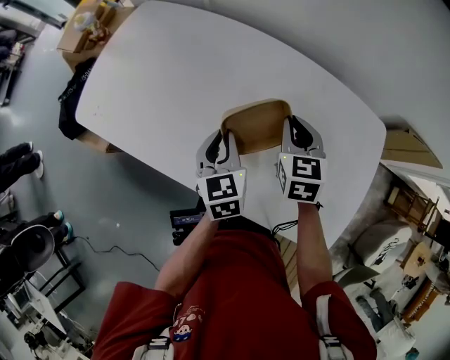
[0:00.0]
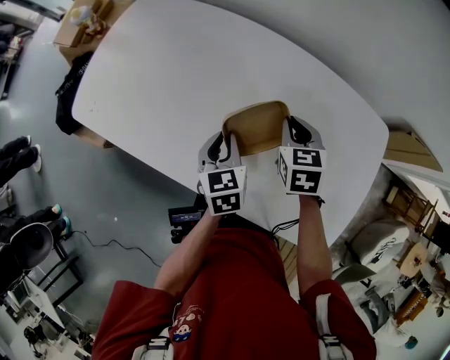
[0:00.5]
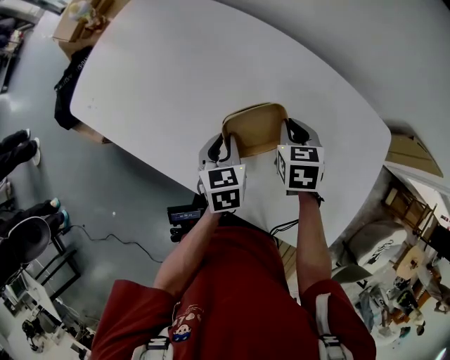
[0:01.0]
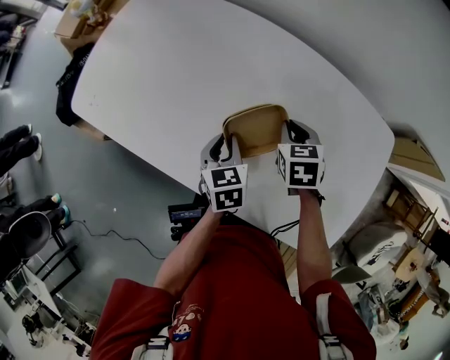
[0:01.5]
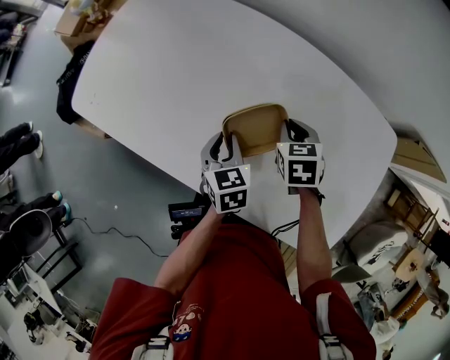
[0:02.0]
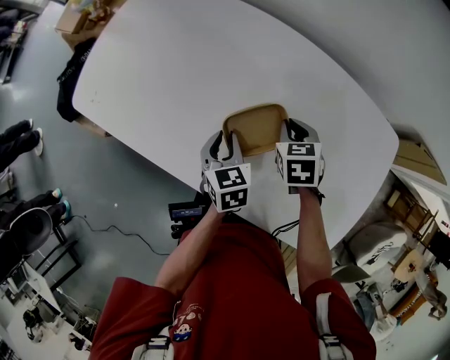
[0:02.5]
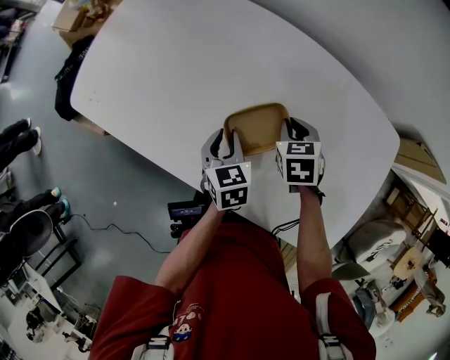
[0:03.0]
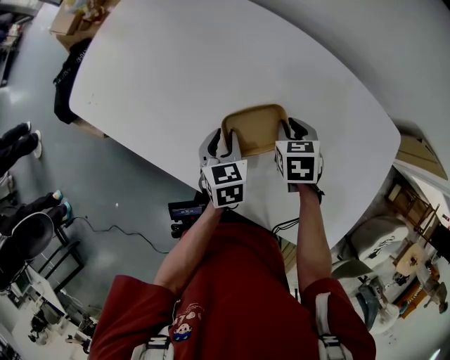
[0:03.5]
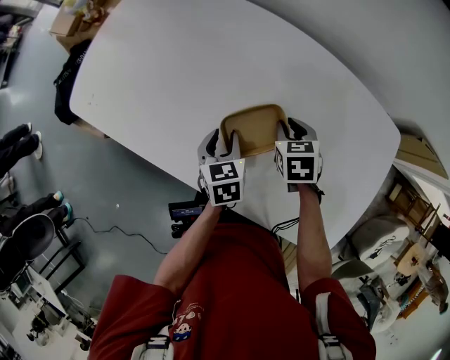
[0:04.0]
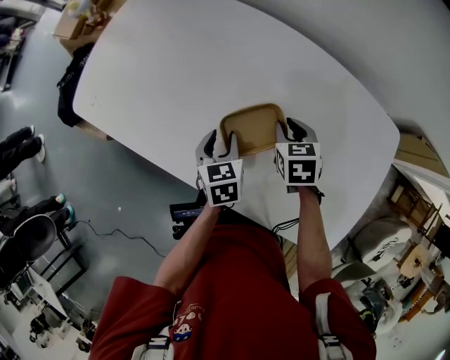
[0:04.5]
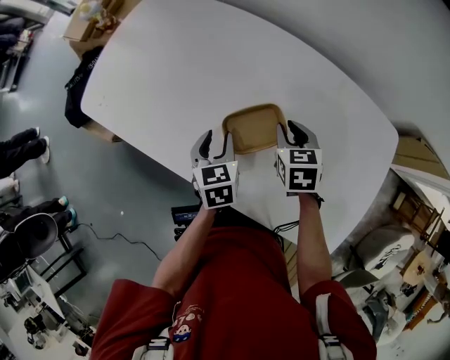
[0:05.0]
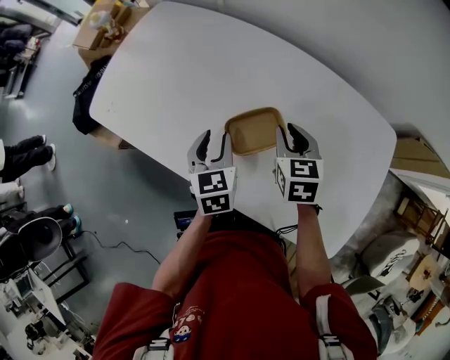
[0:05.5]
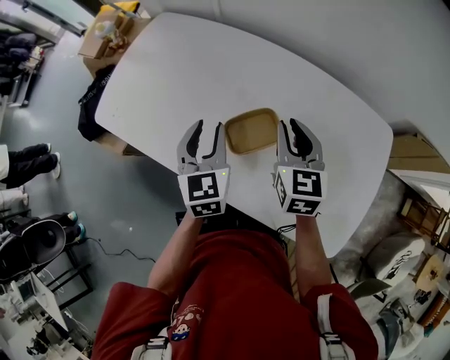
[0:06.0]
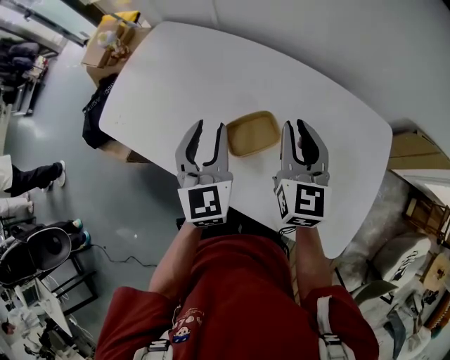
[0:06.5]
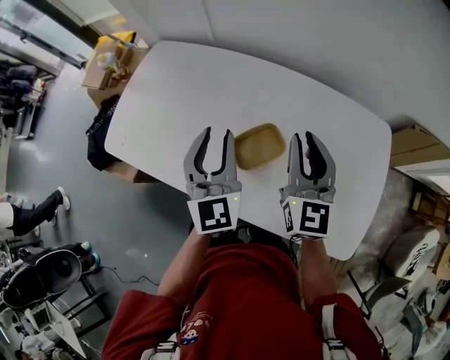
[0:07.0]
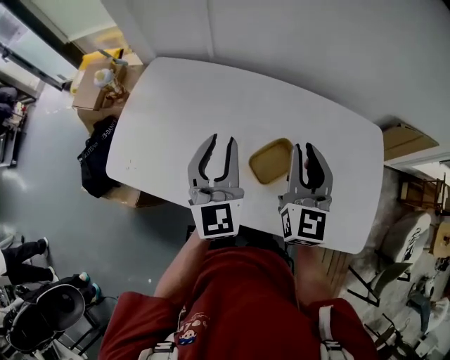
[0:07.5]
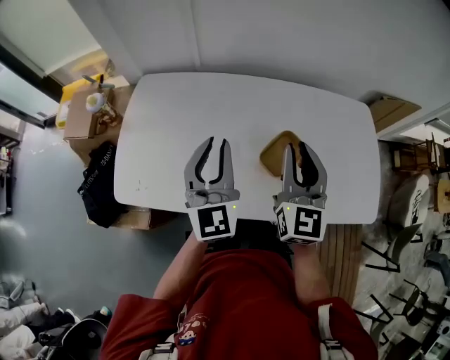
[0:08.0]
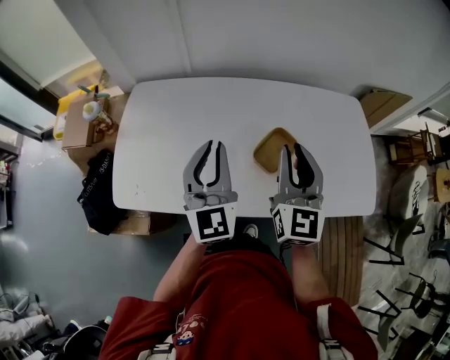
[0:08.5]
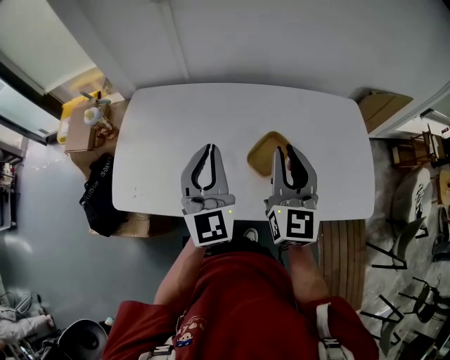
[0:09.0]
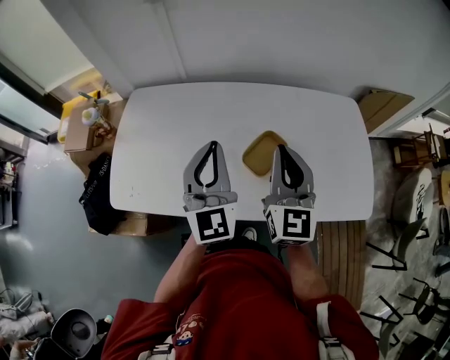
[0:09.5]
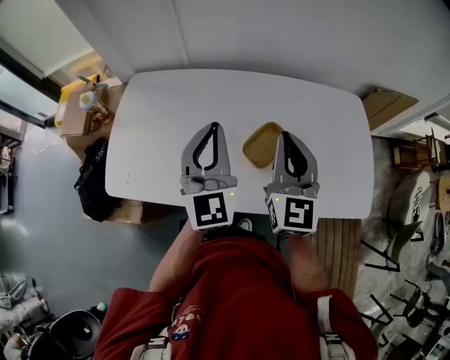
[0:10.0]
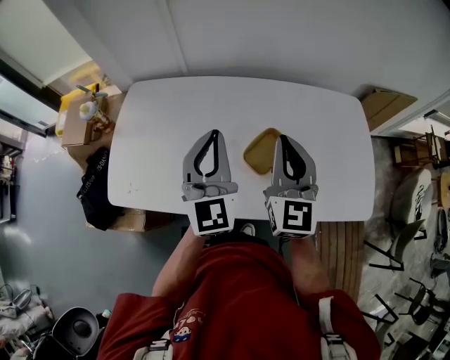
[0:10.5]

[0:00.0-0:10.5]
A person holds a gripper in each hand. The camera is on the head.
0.0 to 2.0 s: Both grippers travel together downward, about 10 cm. The right gripper turns by approximately 20 degrees.
2.0 to 4.0 s: The left gripper opens.
4.0 to 6.5 s: The two grippers go about 25 cm upward. The right gripper tips its fingers upward by some 50 degrees. Meanwhile the left gripper angles its fingers upward, by approximately 40 degrees.
6.5 to 8.5 s: The right gripper moves roughly 20 cm, and rotates roughly 30 degrees. The left gripper ends up some 15 cm from where it was, swivels some 30 degrees, and closes.
8.5 to 10.5 s: The left gripper moves to the right, approximately 5 cm.

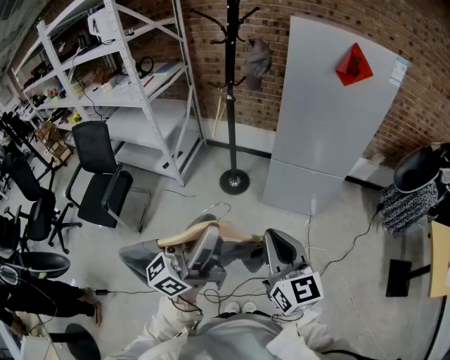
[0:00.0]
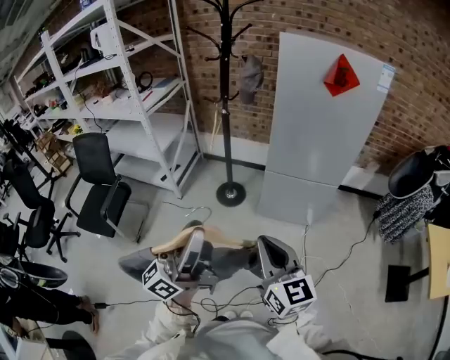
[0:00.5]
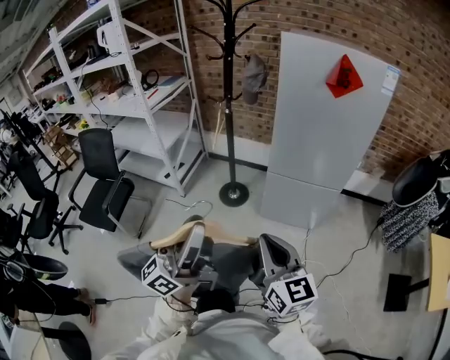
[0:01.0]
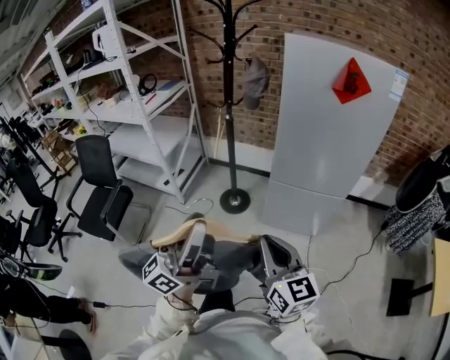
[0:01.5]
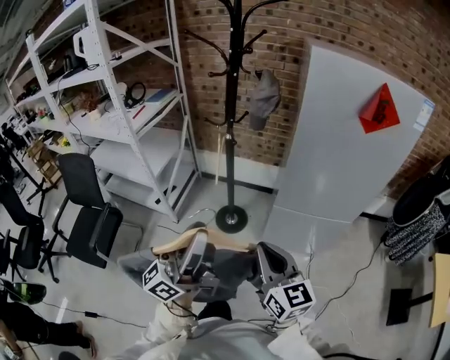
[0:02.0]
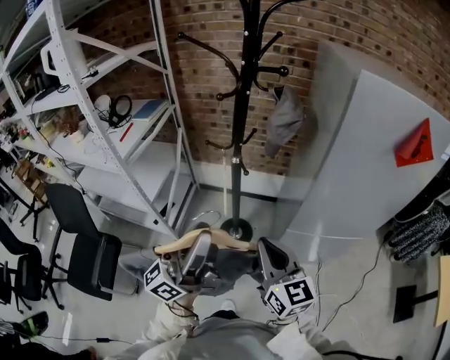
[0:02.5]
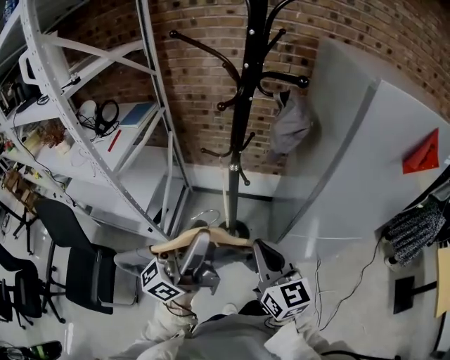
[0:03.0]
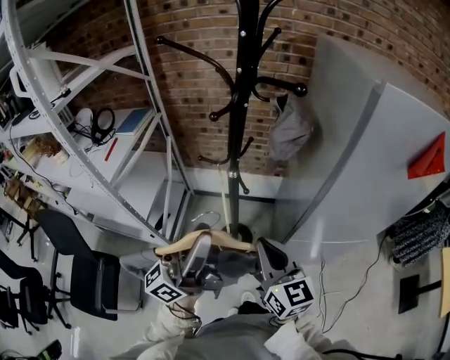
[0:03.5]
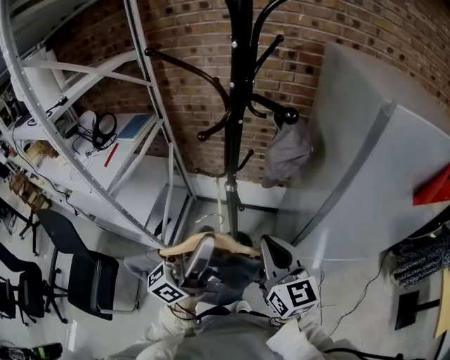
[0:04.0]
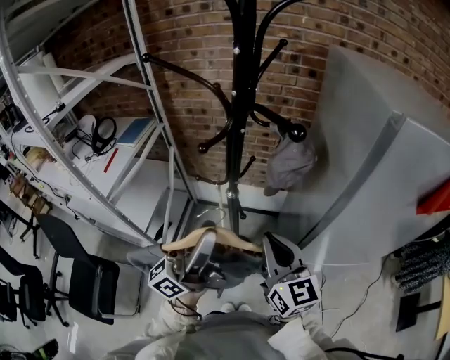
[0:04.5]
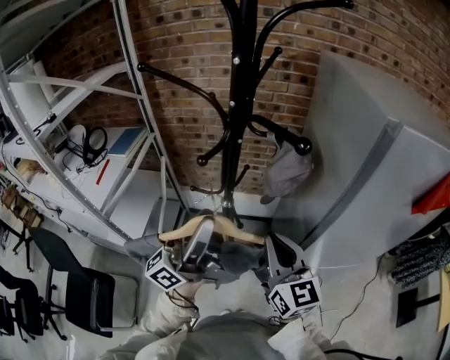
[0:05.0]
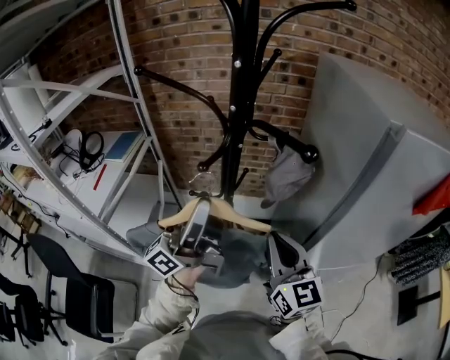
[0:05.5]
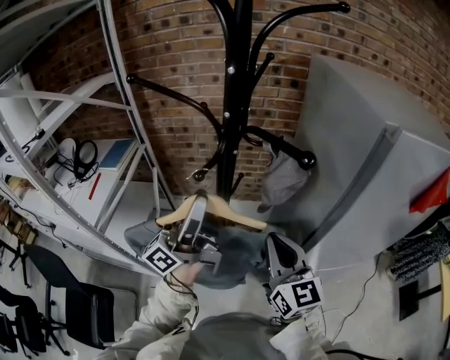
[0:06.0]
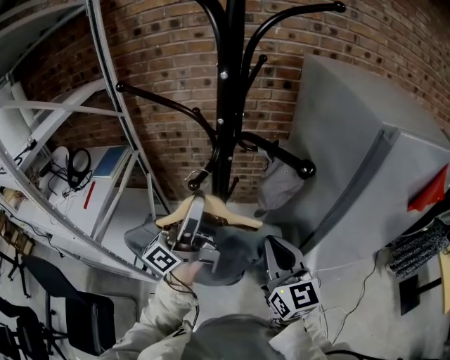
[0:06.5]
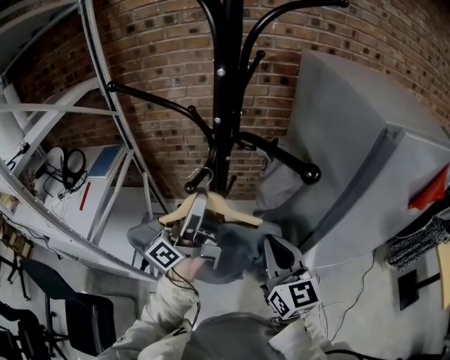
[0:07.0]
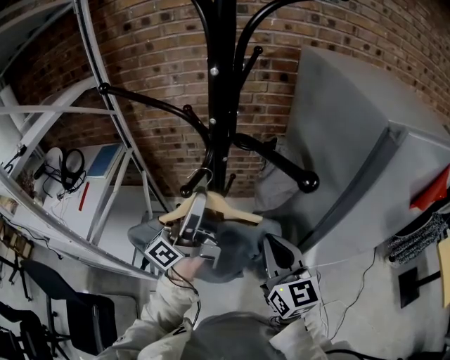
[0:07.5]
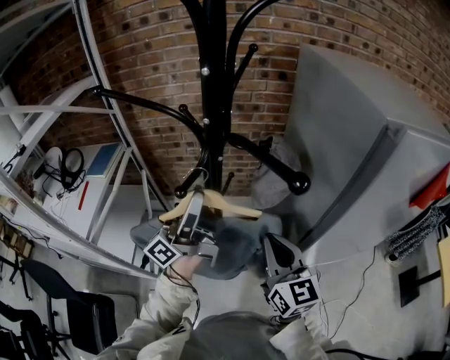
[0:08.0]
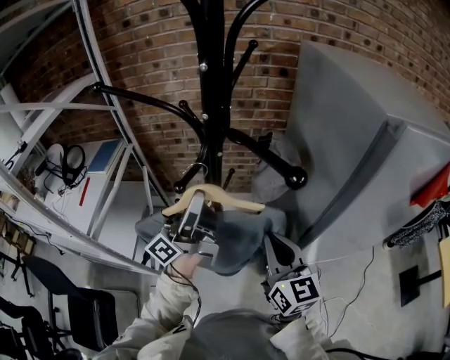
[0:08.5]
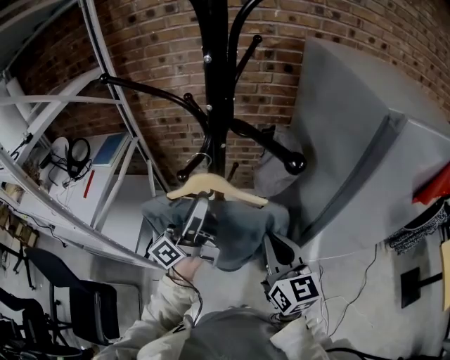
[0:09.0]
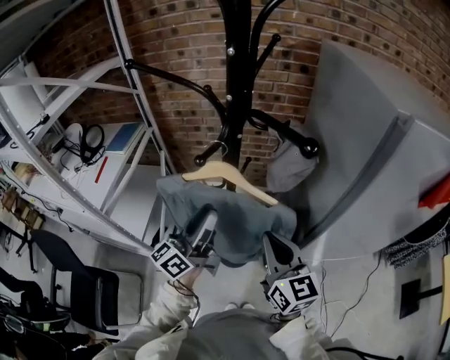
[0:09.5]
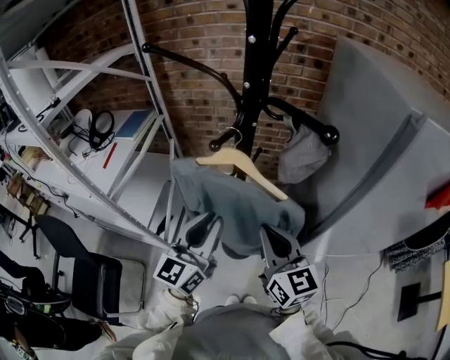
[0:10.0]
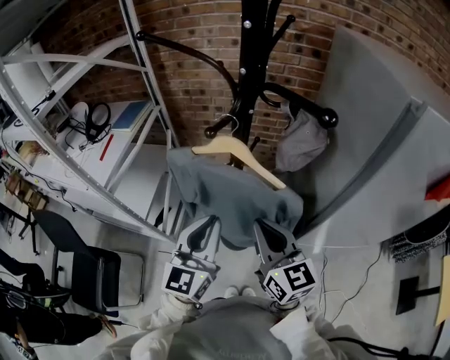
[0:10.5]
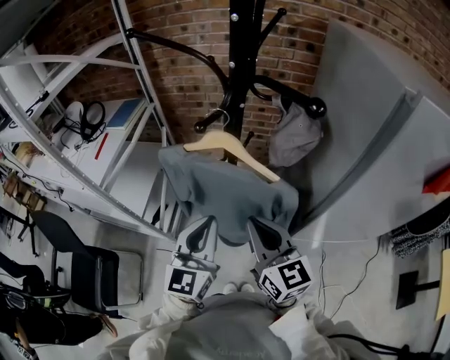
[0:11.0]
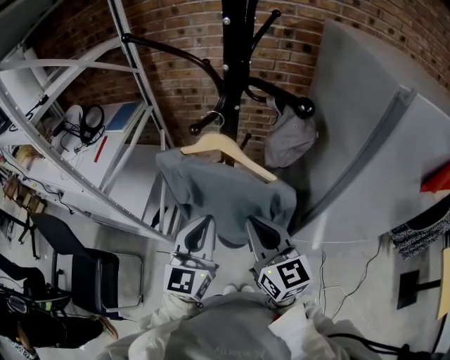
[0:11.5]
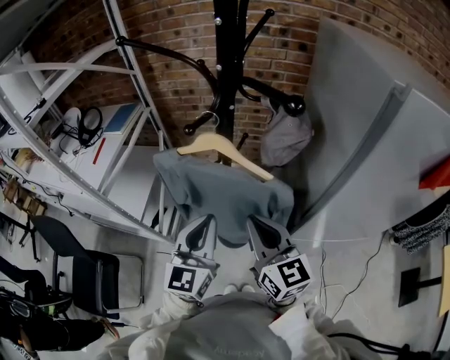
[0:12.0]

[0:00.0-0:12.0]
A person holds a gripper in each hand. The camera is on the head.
0.0 to 2.0 s: Both grippers move forward, roughly 20 cm.
2.0 to 4.0 s: Both grippers move forward, some 35 cm.
4.0 to 6.0 s: The left gripper goes about 15 cm forward, while the right gripper heads forward, covering about 5 cm.
6.0 to 8.0 s: The left gripper heads forward, covering roughly 5 cm.
8.0 to 10.0 s: The left gripper heads backward and downward, covering about 15 cm, and tilts its fingers roughly 30 degrees downward; the right gripper moves to the left and backward, about 10 cm.
10.0 to 12.0 s: There are only small adjustments of the grippers.

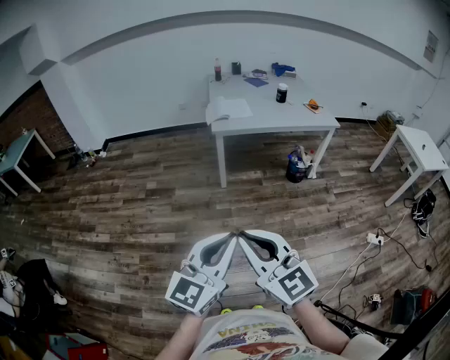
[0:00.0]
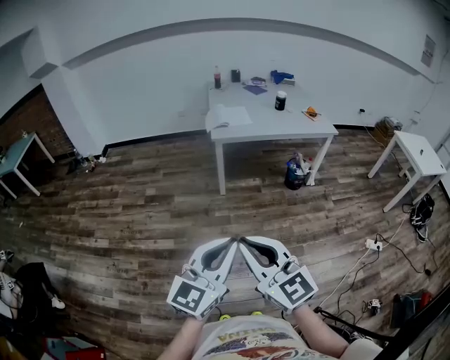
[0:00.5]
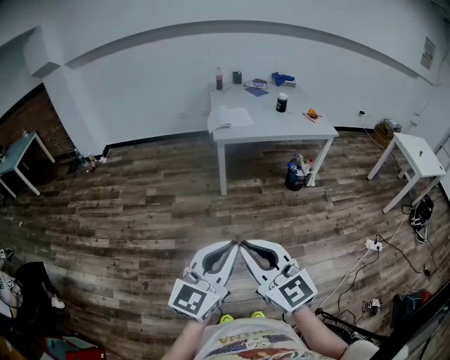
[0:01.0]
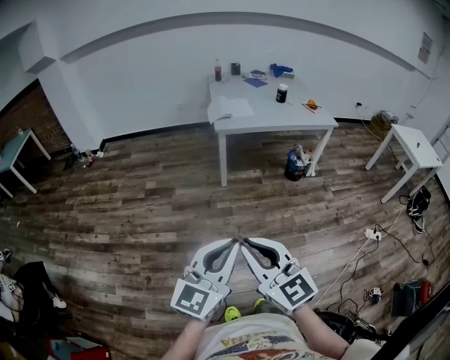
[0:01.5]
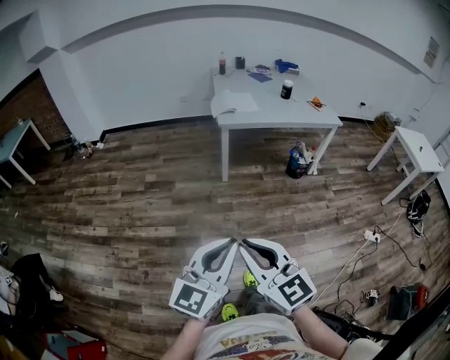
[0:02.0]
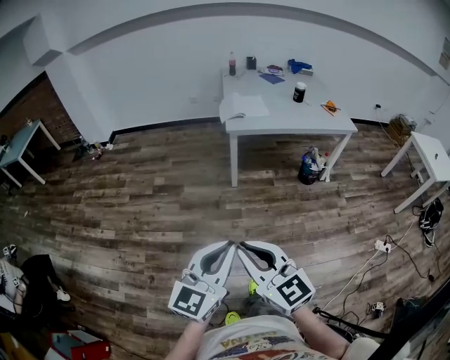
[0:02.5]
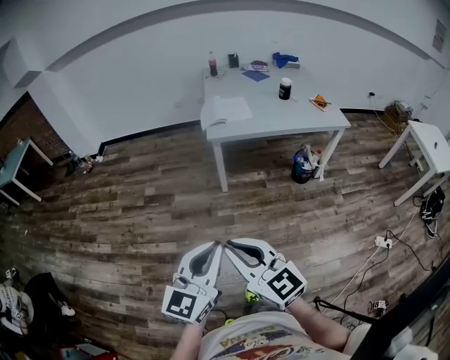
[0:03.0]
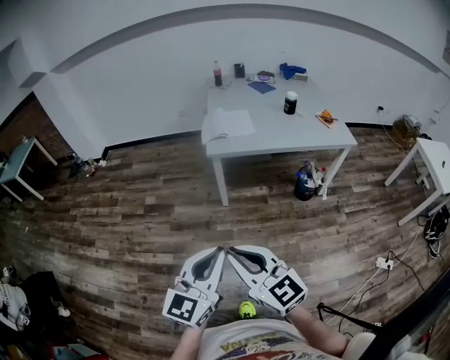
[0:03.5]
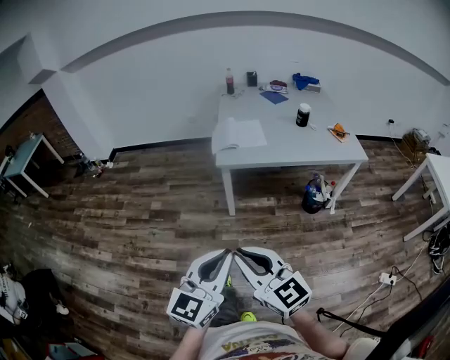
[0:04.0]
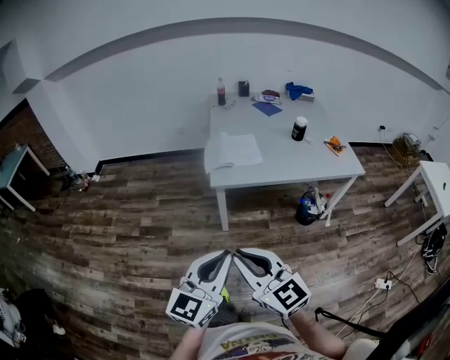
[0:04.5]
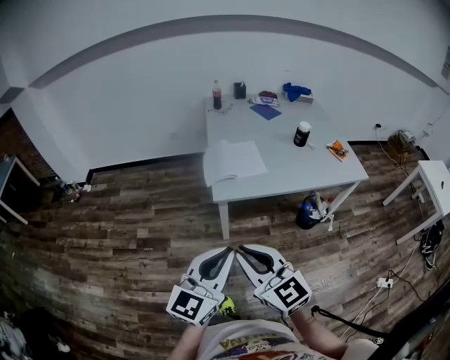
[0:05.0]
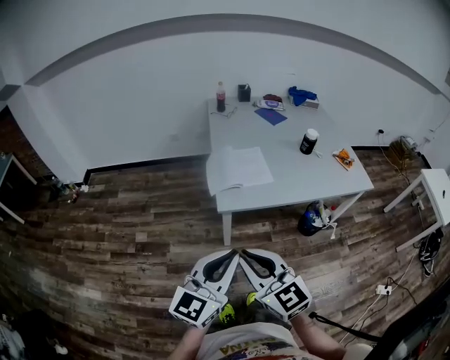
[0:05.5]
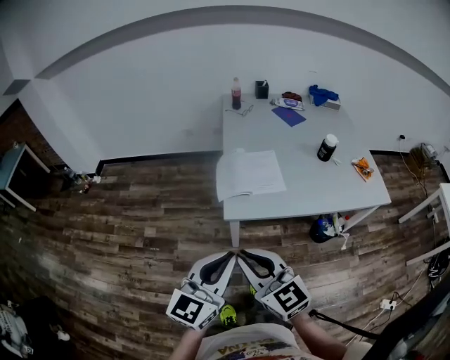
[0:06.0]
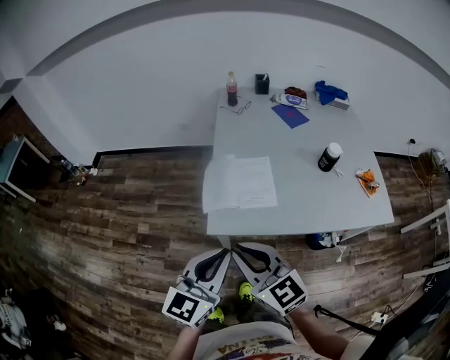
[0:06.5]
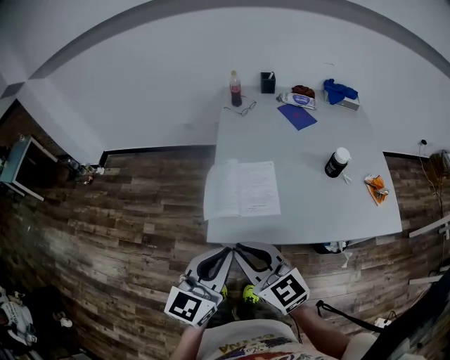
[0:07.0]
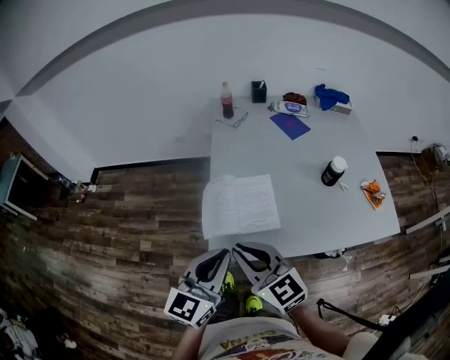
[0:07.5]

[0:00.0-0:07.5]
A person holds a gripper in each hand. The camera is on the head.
0.0 to 2.0 s: The grippers both shift to the left by about 5 cm.
2.0 to 4.0 s: The two grippers go roughly 35 cm forward and to the right.
4.0 to 5.5 s: Both grippers move forward, approximately 30 cm.
5.5 to 7.5 s: Both grippers move forward, about 35 cm.
